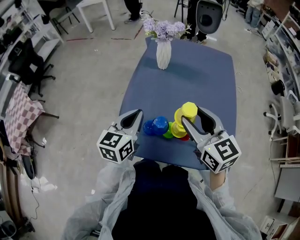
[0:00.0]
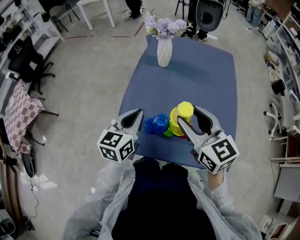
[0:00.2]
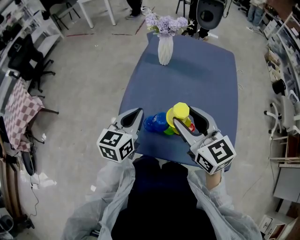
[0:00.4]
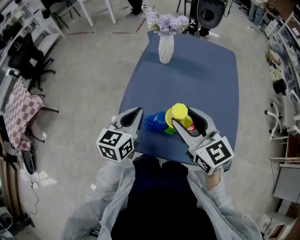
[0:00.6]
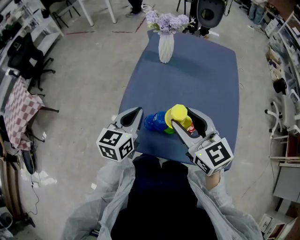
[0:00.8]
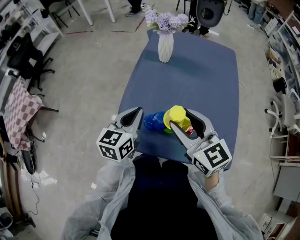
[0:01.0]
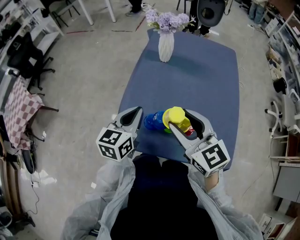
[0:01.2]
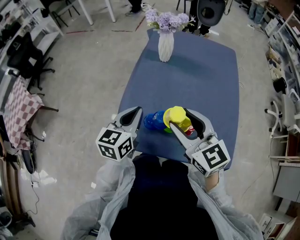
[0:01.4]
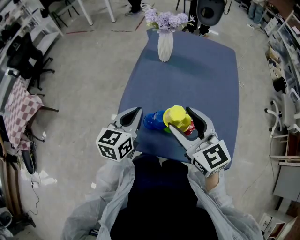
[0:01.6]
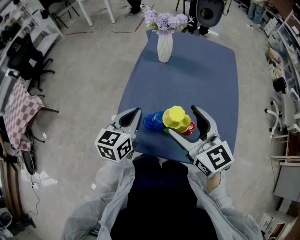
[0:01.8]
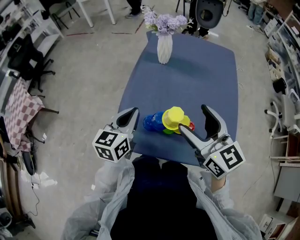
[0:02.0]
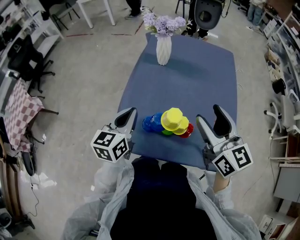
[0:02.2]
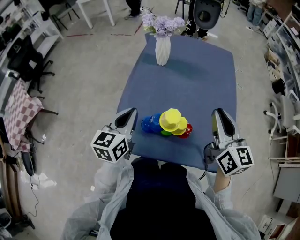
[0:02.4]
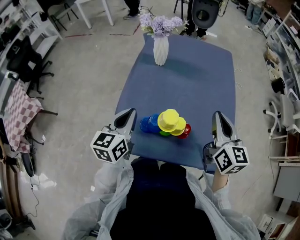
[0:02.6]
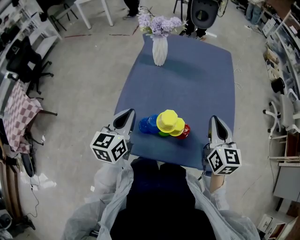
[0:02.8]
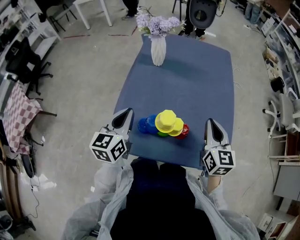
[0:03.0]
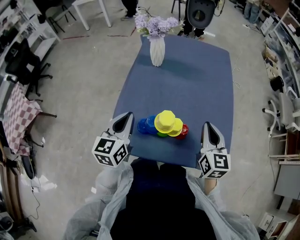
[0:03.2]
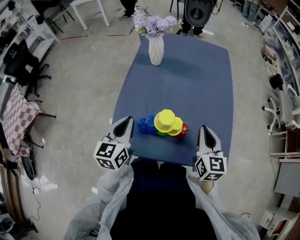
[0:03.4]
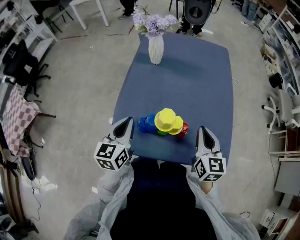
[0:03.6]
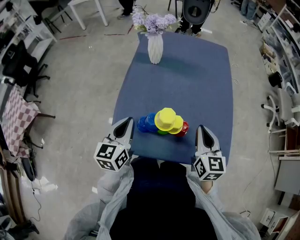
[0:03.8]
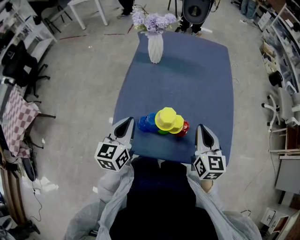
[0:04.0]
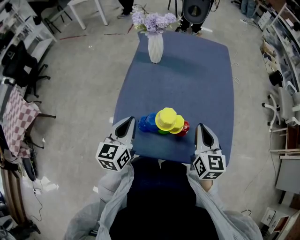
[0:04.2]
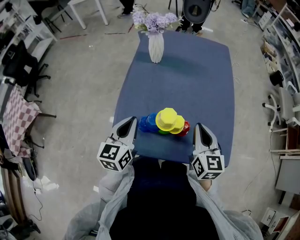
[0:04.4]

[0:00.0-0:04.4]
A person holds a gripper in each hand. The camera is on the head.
0:00.0 to 0:01.4: The right gripper shifts by approximately 5 cm.
0:01.4 to 0:03.0: The right gripper moves to the right, about 15 cm, changes its angle by roughly 30 degrees, and closes up.
0:03.0 to 0:04.4: The right gripper ends up about 5 cm from where it was.

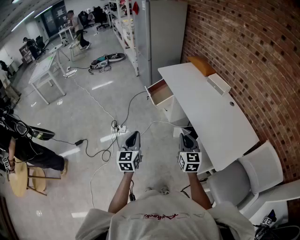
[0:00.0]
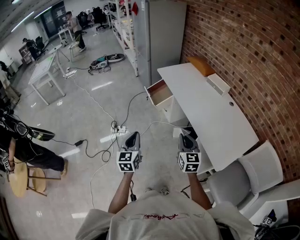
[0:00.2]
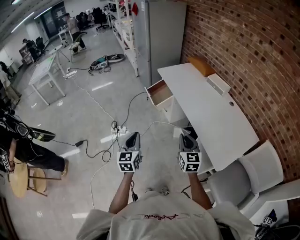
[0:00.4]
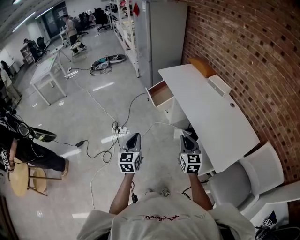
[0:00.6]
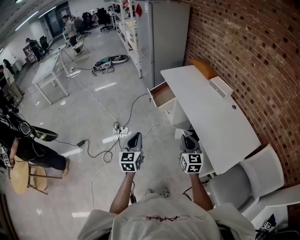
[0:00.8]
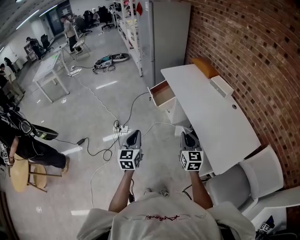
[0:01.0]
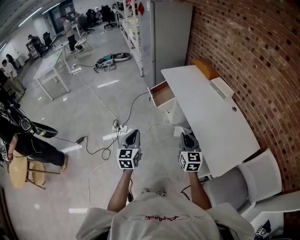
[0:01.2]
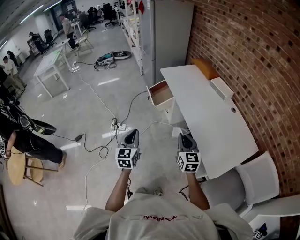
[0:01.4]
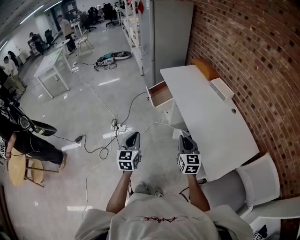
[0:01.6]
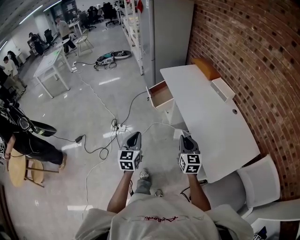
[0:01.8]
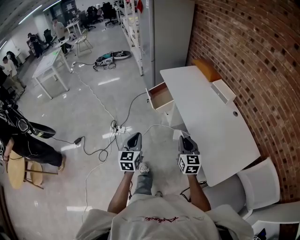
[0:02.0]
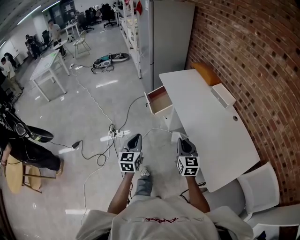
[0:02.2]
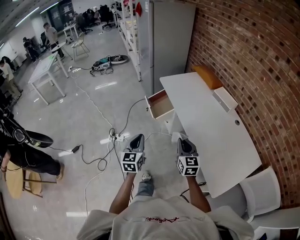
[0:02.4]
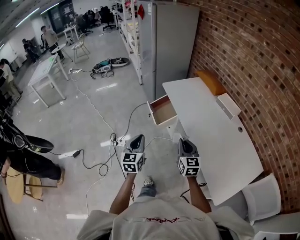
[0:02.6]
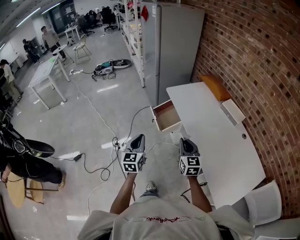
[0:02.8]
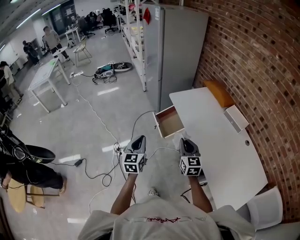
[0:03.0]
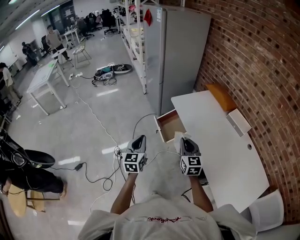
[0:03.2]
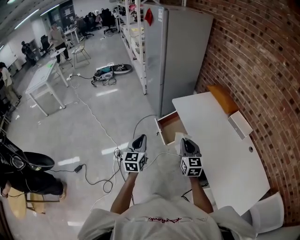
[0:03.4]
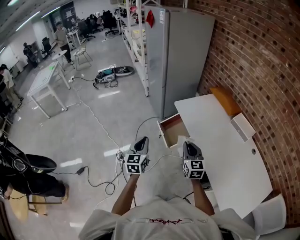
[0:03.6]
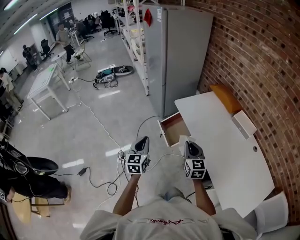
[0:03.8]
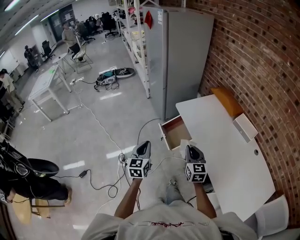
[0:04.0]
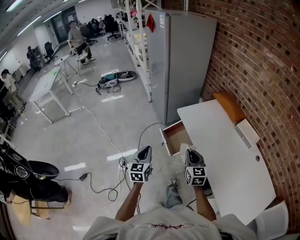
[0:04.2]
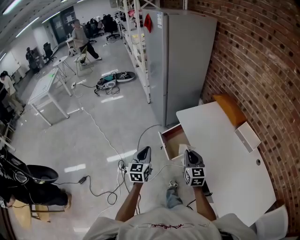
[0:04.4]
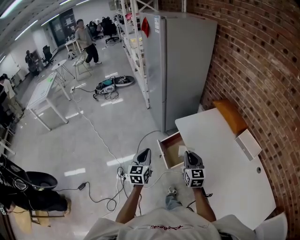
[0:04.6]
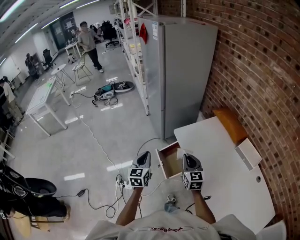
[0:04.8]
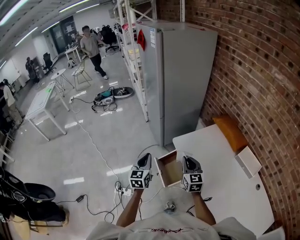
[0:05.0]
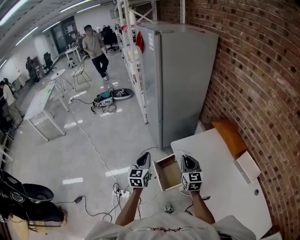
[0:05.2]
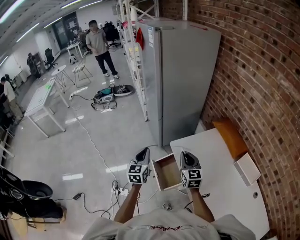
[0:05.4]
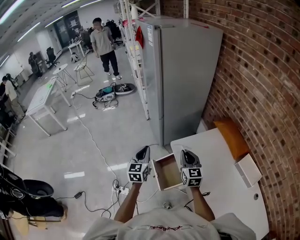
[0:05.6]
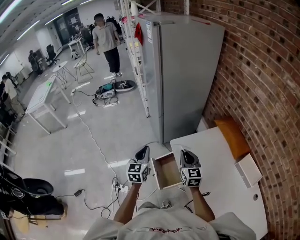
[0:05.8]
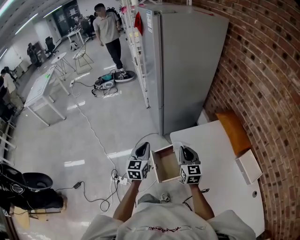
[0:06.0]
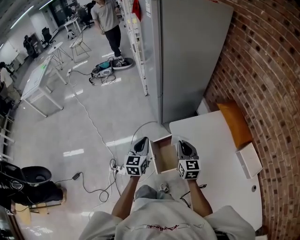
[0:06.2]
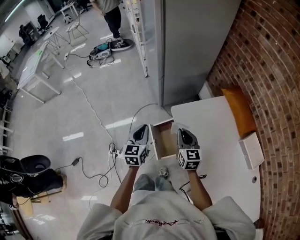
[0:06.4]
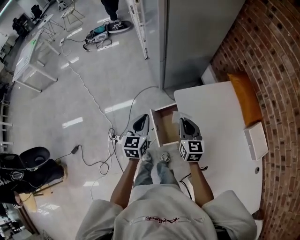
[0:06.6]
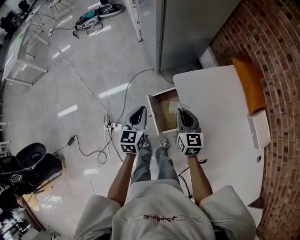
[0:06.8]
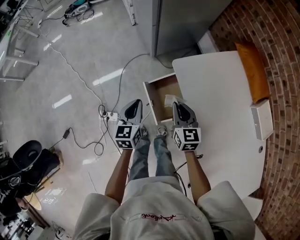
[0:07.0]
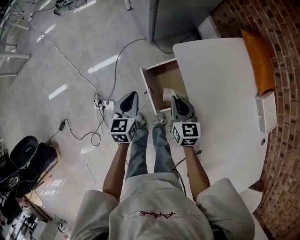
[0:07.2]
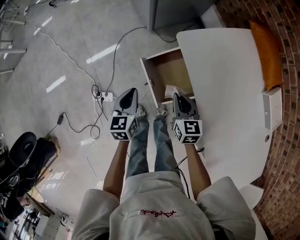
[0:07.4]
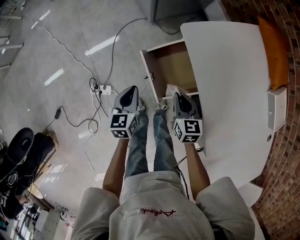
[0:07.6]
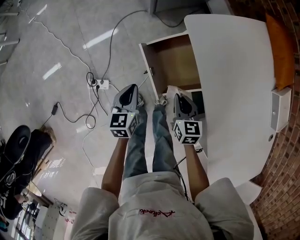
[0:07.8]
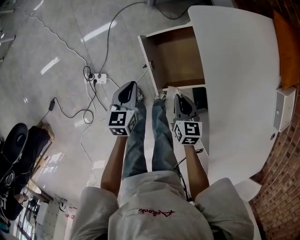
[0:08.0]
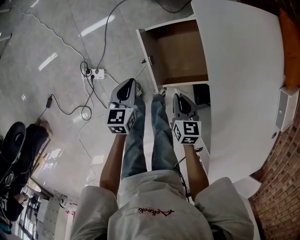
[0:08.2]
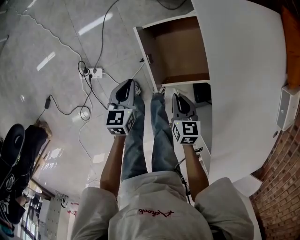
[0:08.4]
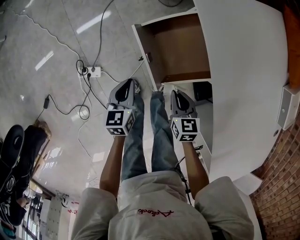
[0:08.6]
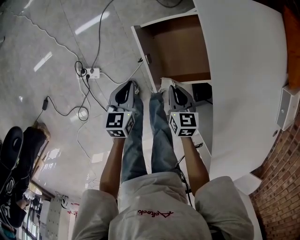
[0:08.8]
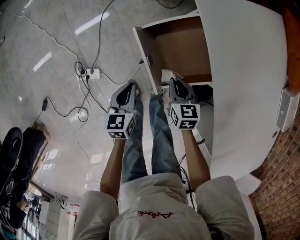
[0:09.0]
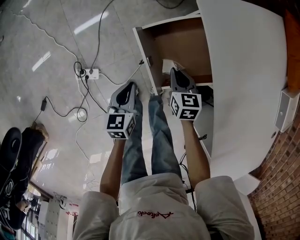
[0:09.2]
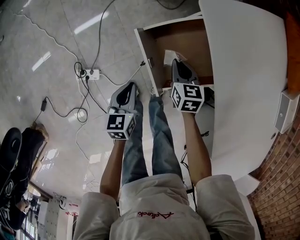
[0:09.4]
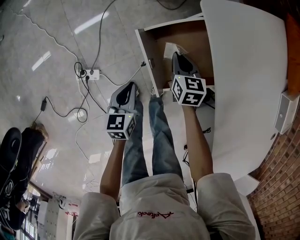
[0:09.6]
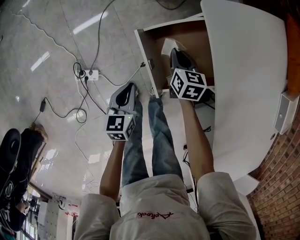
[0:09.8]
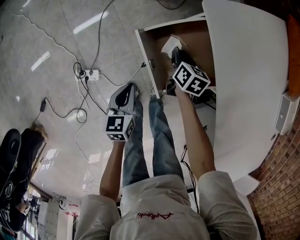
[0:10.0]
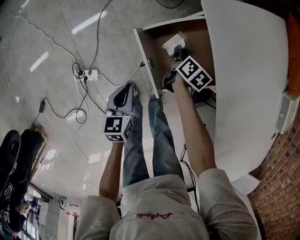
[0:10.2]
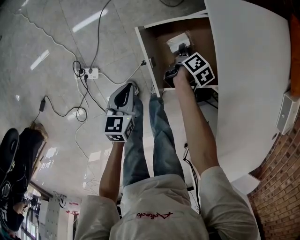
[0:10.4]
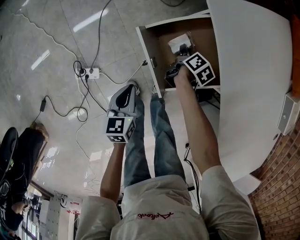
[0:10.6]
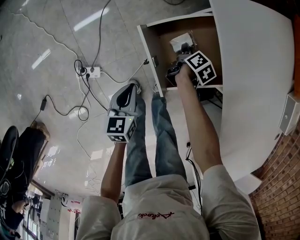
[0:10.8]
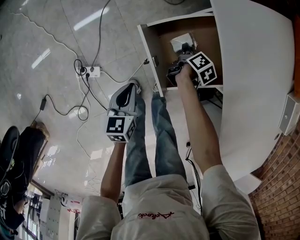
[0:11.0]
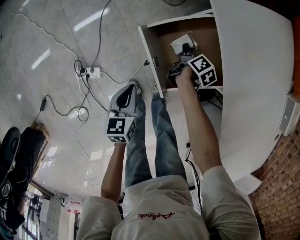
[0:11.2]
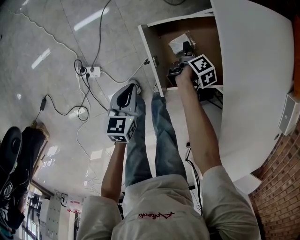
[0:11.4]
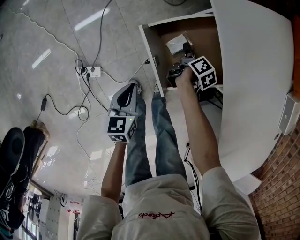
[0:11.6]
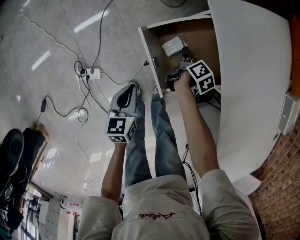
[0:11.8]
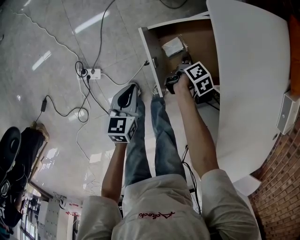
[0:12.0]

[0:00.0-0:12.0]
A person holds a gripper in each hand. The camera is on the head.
0:00.0 to 0:01.6: Both grippers travel together to the right, roughly 5 cm.
0:01.6 to 0:03.0: Both grippers travel together forward, some 30 cm.
0:03.0 to 0:04.4: The grippers both shift forward by roughly 15 cm.
0:04.4 to 0:06.0: Both grippers travel together forward, roughly 25 cm.
0:06.0 to 0:07.6: The grippers both shift downward by about 30 cm. The left gripper swivels approximately 20 degrees; the right gripper rotates approximately 30 degrees.
0:07.6 to 0:09.0: The two grippers go approximately 10 cm downward.
0:09.0 to 0:10.4: The right gripper is displaced forward and downward by roughly 15 cm, and twists approximately 50 degrees clockwise, seen from behind.
0:10.4 to 0:12.0: The right gripper opens, then closes once more.

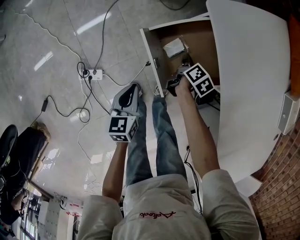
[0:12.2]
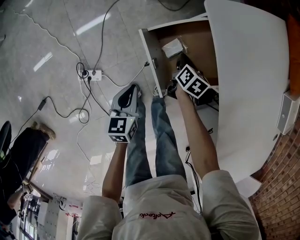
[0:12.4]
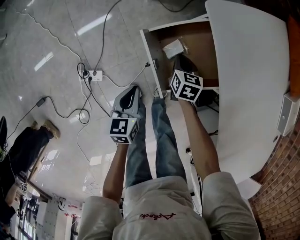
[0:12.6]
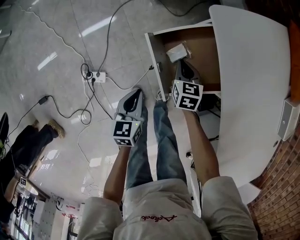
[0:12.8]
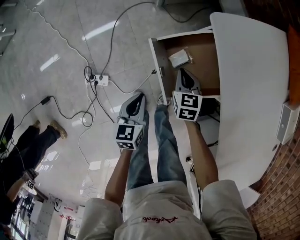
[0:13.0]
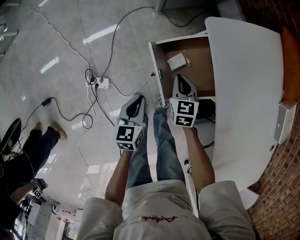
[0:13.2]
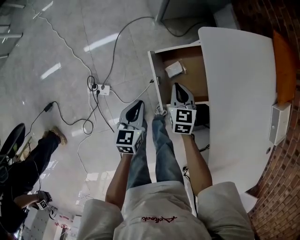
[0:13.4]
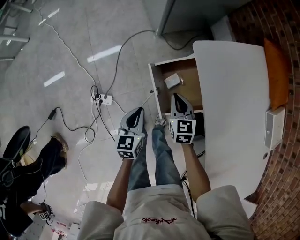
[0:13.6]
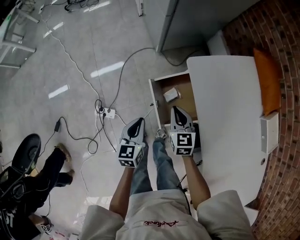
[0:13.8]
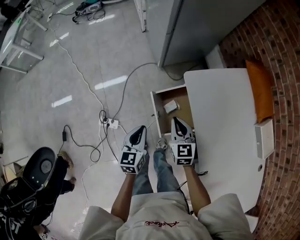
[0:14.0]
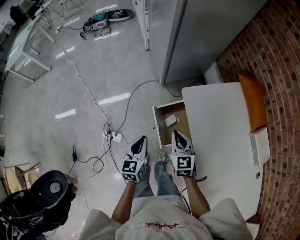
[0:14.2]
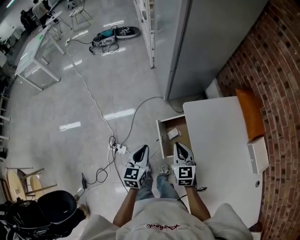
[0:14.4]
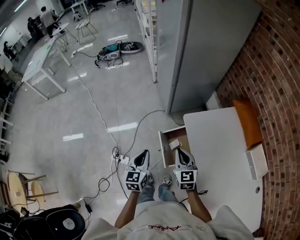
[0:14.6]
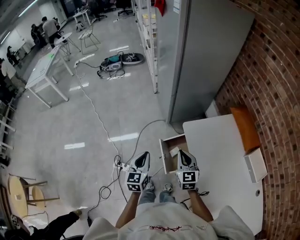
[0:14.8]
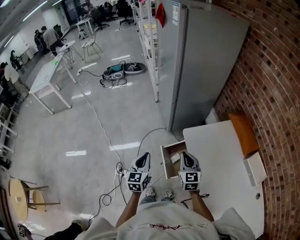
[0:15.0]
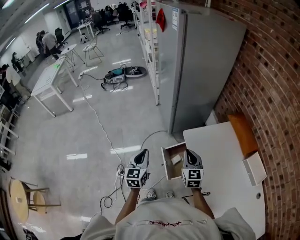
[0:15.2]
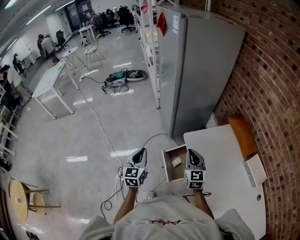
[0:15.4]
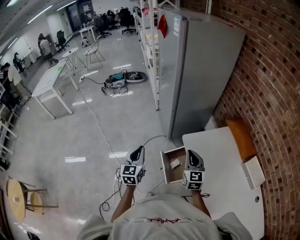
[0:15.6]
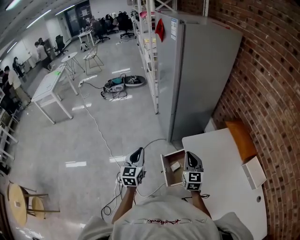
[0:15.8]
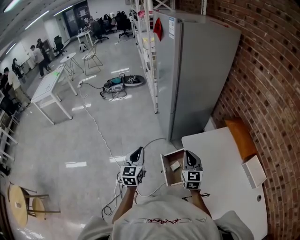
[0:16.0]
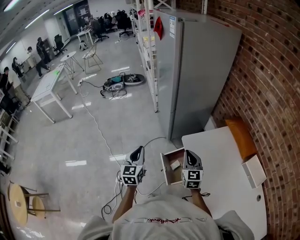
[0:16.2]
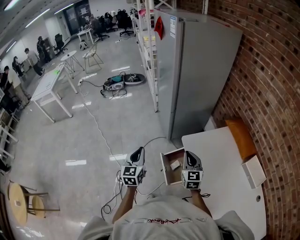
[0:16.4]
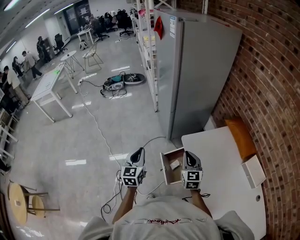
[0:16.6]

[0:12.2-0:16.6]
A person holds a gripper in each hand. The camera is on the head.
0:12.2 to 0:13.6: The left gripper heads upward, covering about 10 cm; the right gripper shifts roughly 20 cm upward and to the left, and twists about 60 degrees counterclockwise, seen from behind.
0:13.6 to 0:15.2: The two grippers go roughly 30 cm upward. The right gripper swivels roughly 20 degrees. Meanwhile the left gripper rotates about 20 degrees.
0:15.2 to 0:16.6: There are only small adjustments of the grippers.

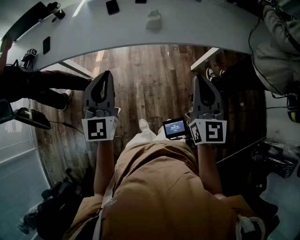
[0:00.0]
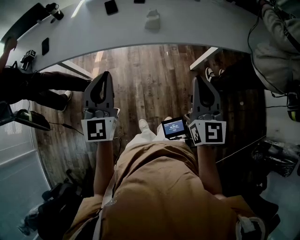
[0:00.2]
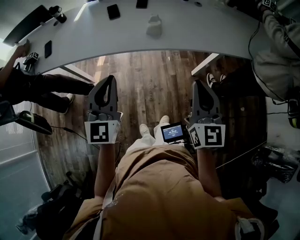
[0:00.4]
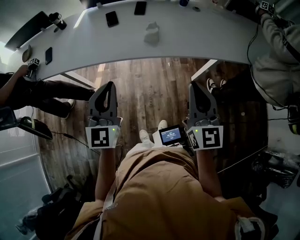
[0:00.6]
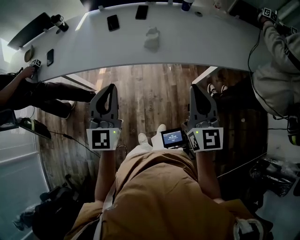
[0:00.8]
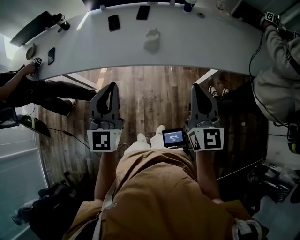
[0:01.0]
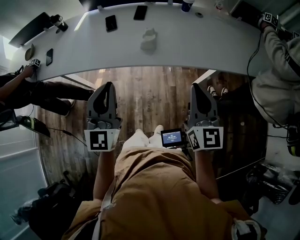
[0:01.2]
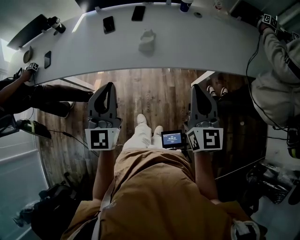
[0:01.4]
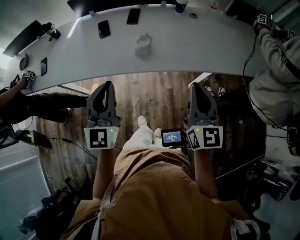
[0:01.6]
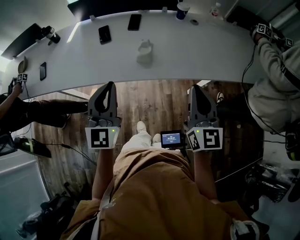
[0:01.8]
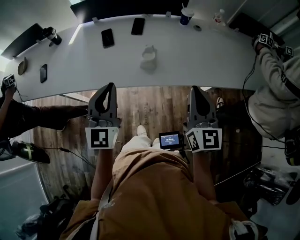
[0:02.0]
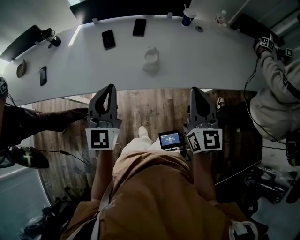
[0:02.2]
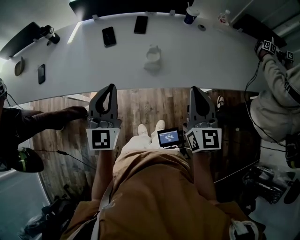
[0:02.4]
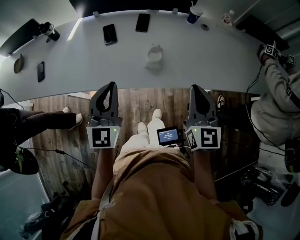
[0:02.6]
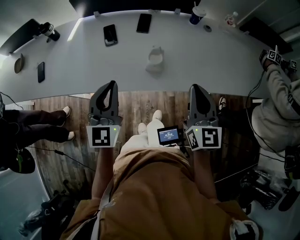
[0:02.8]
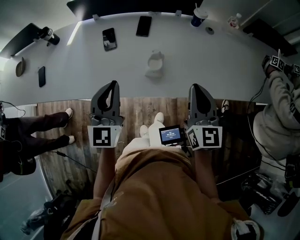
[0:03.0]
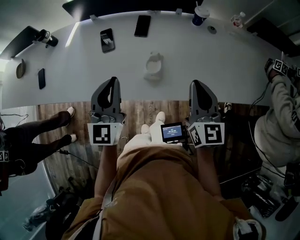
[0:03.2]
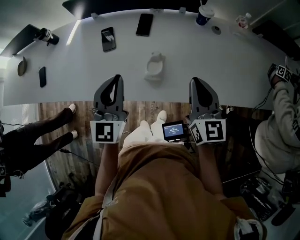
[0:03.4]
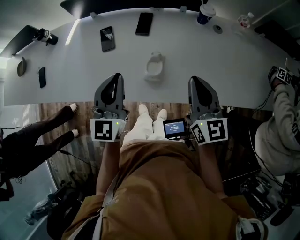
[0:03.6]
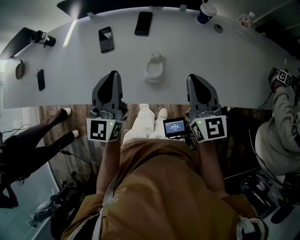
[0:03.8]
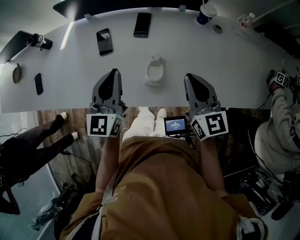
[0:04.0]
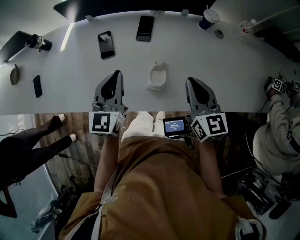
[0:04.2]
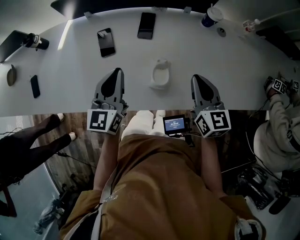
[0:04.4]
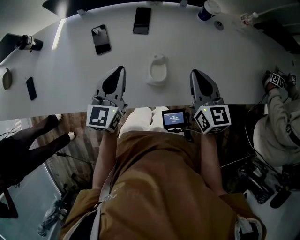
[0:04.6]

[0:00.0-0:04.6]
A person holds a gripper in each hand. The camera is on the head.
0:00.0 to 0:01.6: The two grippers go some 15 cm forward and to the right.
0:01.6 to 0:03.0: Both grippers move forward, roughly 15 cm.
0:03.0 to 0:04.6: The two grippers go about 20 cm forward and downward. The left gripper changes its angle by some 20 degrees.
